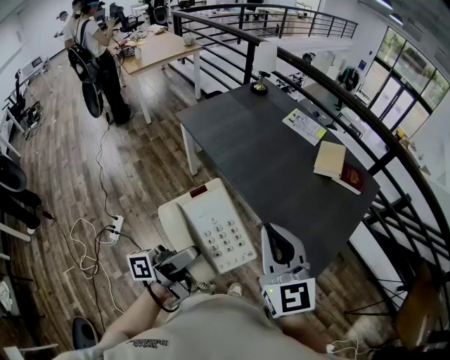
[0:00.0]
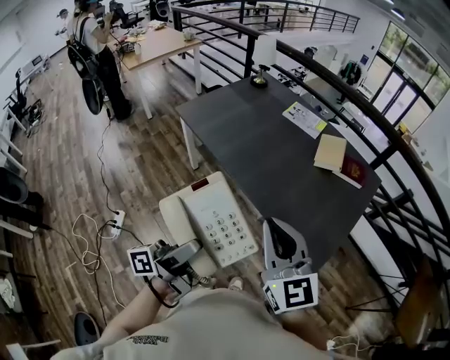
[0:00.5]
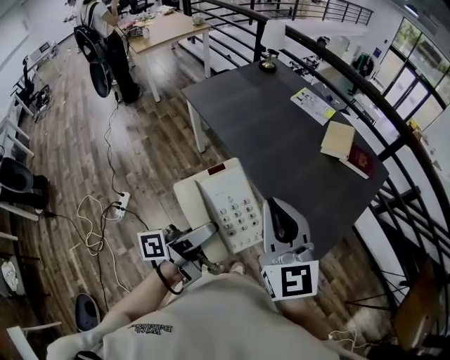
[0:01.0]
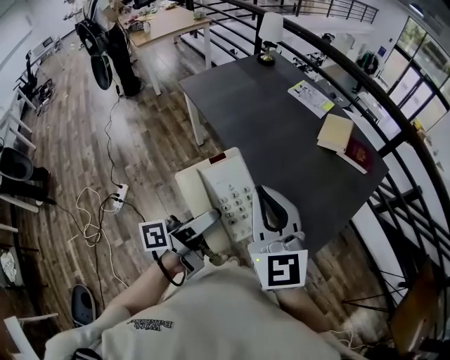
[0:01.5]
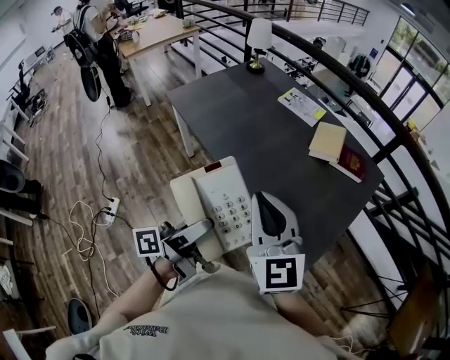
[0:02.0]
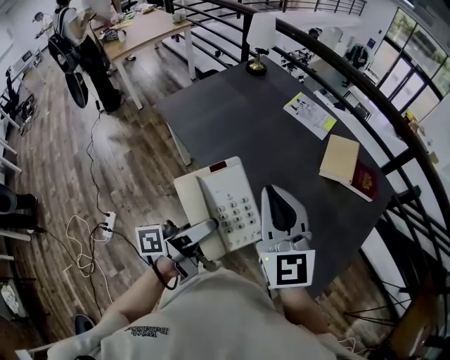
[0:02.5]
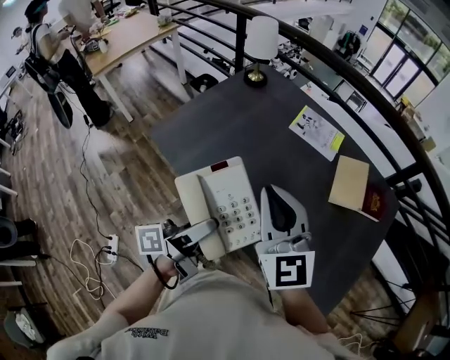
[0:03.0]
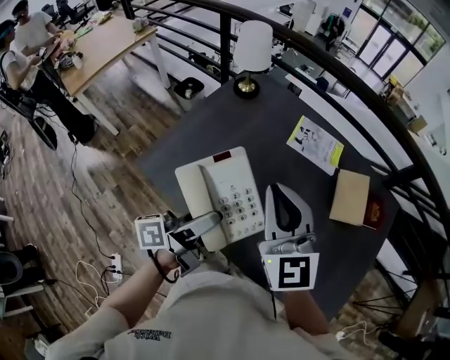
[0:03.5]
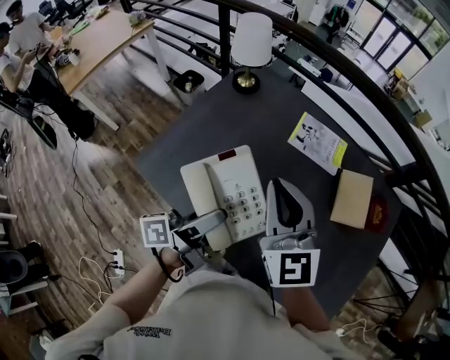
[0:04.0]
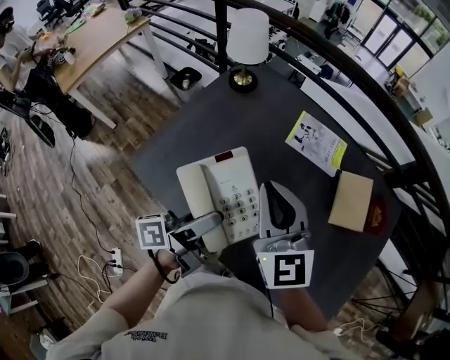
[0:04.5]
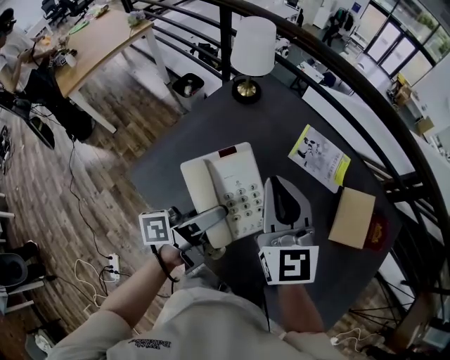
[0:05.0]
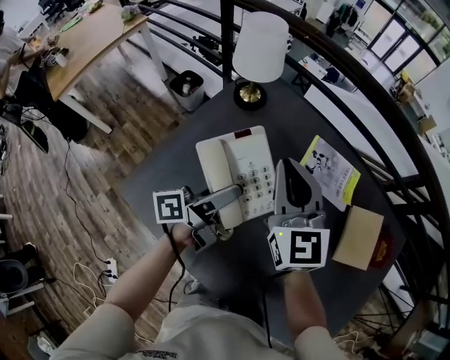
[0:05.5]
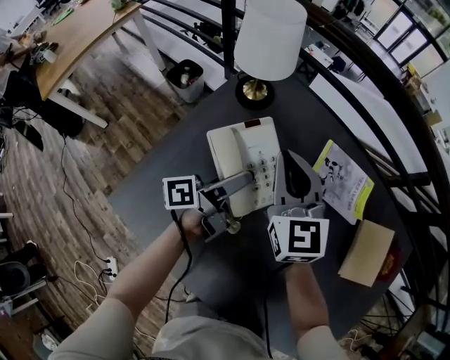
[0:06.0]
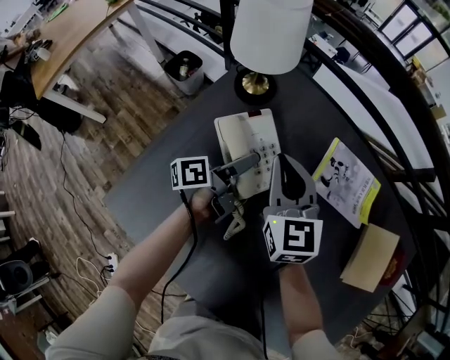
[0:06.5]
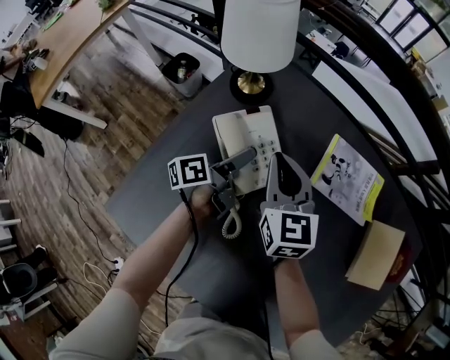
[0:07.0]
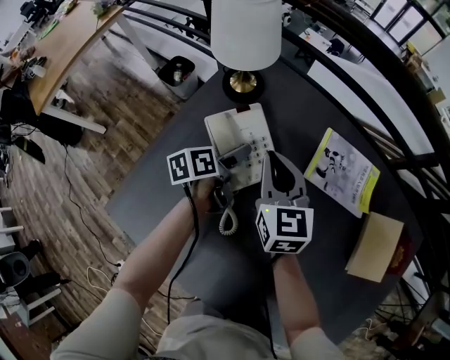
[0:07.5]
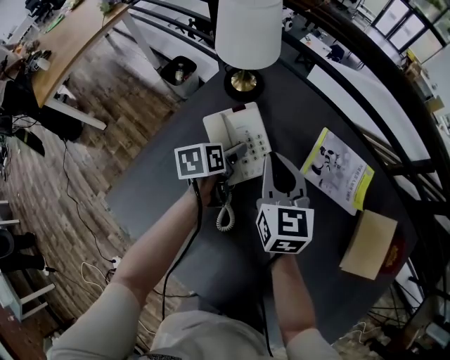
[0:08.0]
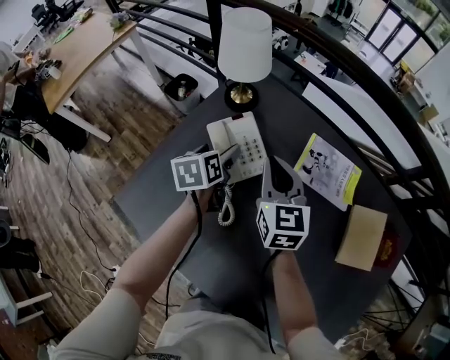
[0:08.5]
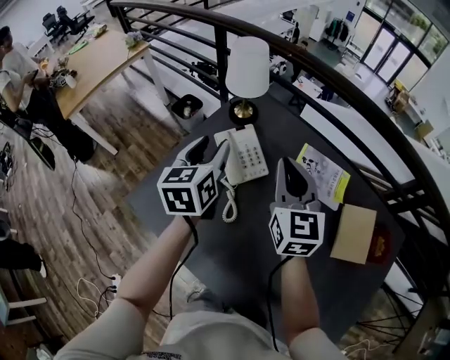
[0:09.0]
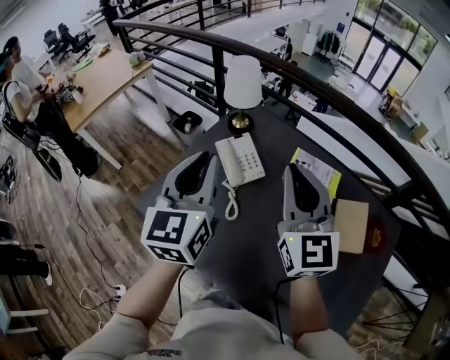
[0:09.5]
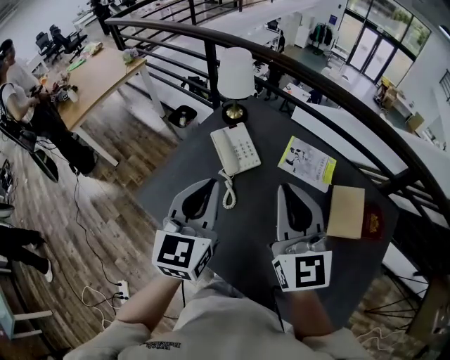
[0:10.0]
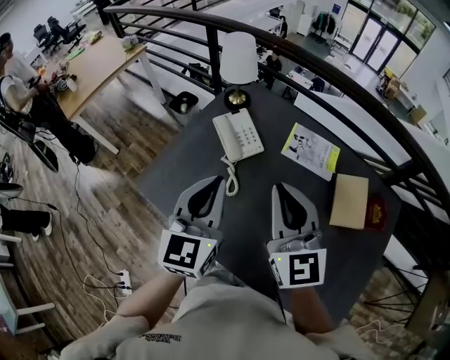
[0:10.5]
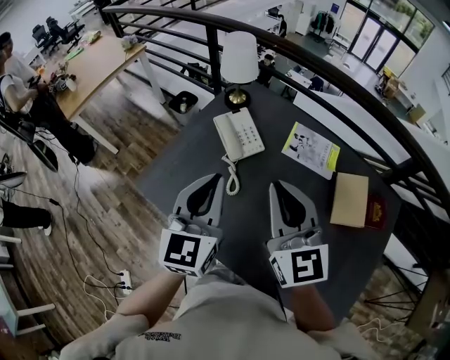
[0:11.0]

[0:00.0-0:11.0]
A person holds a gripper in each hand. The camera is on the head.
0:00.0 to 0:02.0: Both grippers travel together to the right and forward, approximately 10 cm.
0:02.0 to 0:03.5: Both grippers are carried forward and to the left, approximately 50 cm.
0:03.5 to 0:05.5: The grippers both shift forward by approximately 25 cm.
0:05.5 to 0:07.5: The grippers both shift downward and forward by about 20 cm. The left gripper angles its fingers downward, by roughly 40 degrees.
0:07.5 to 0:09.0: The right gripper shifts about 20 cm upward and backward. The left gripper moves upward, about 30 cm, swivels roughly 50 degrees, and closes its fingers.
0:09.0 to 0:11.0: The right gripper shifts roughly 20 cm backward and upward. Meanwhile the left gripper is displaced backward by roughly 20 cm, changes its angle by some 20 degrees, and closes.

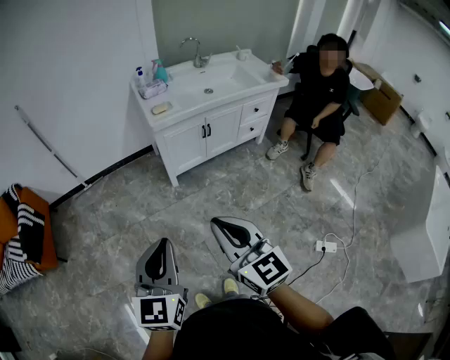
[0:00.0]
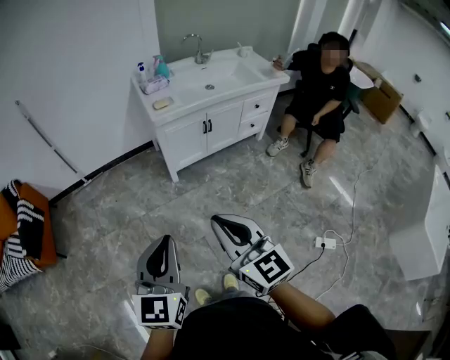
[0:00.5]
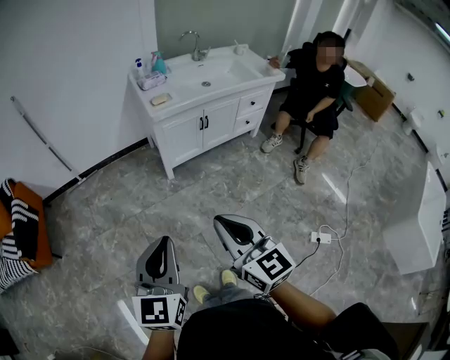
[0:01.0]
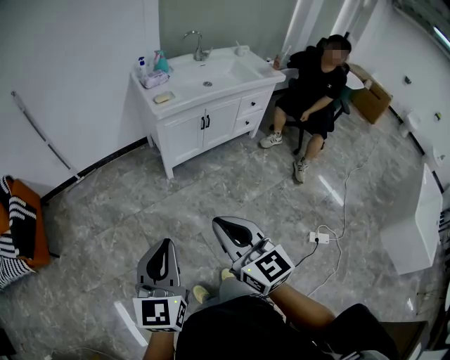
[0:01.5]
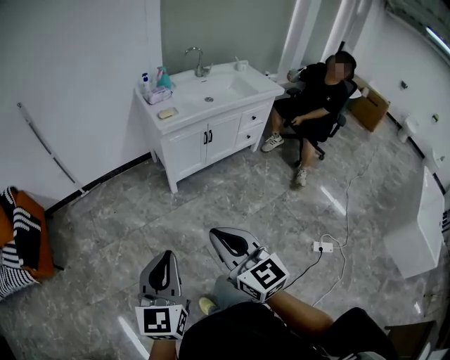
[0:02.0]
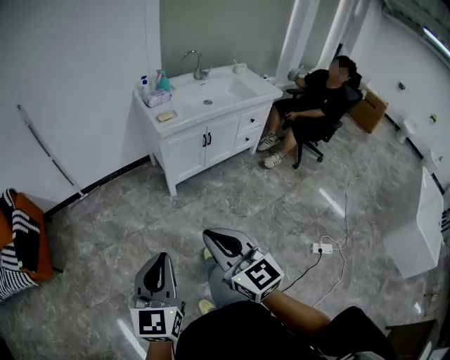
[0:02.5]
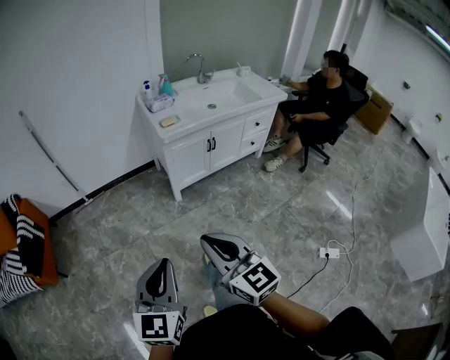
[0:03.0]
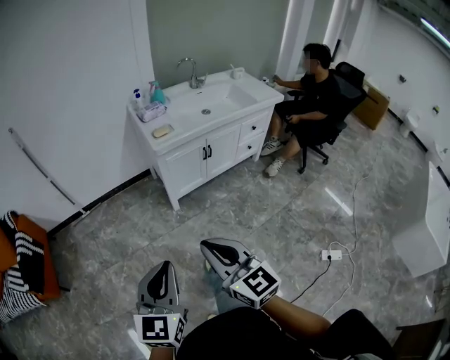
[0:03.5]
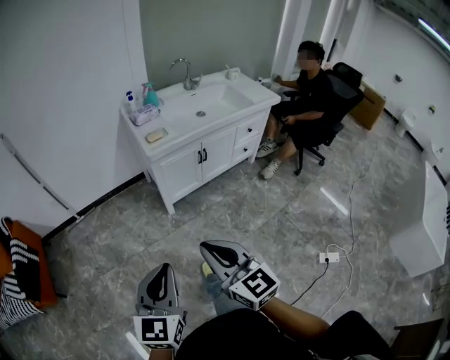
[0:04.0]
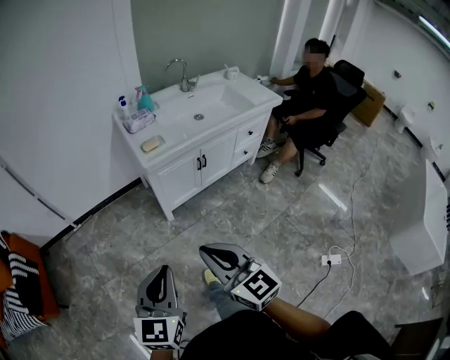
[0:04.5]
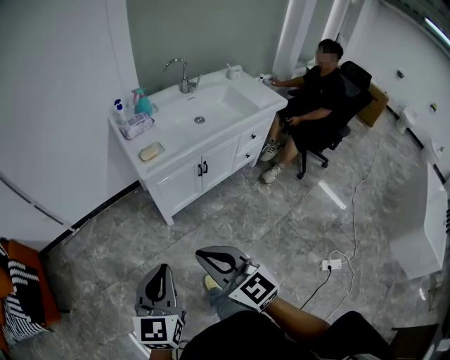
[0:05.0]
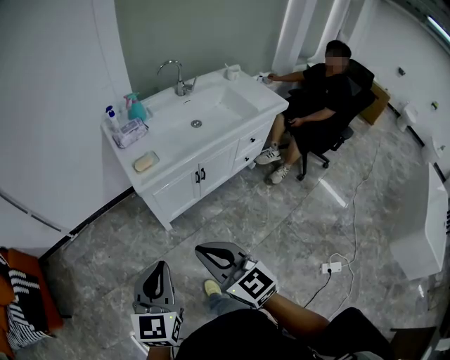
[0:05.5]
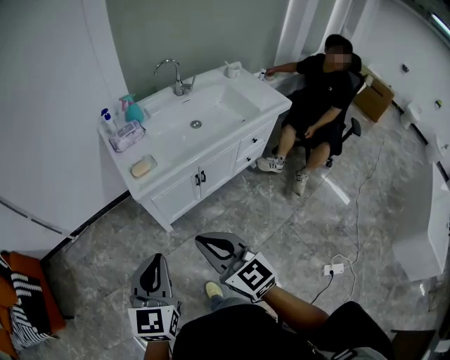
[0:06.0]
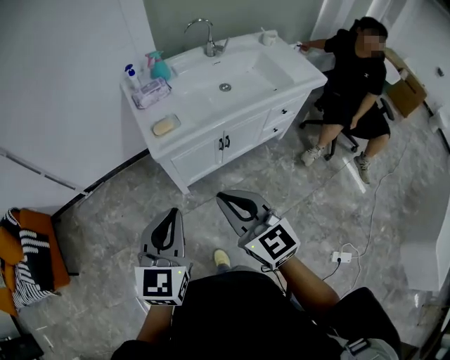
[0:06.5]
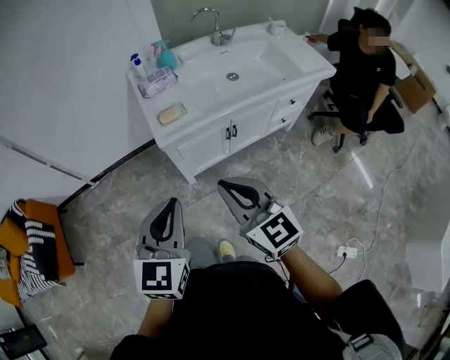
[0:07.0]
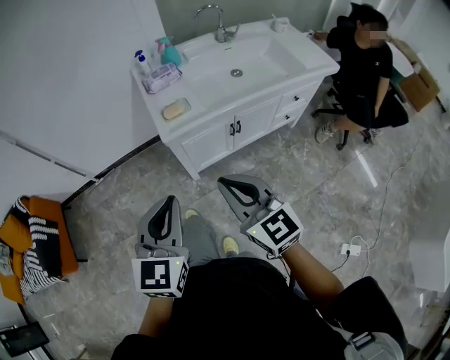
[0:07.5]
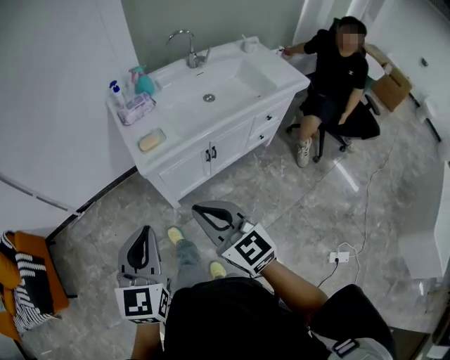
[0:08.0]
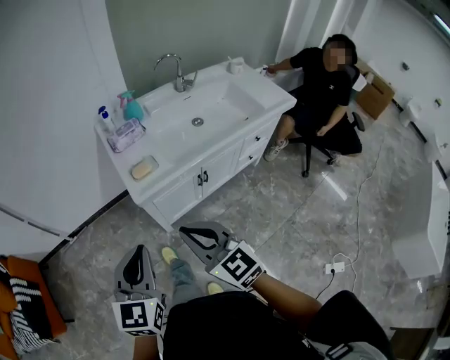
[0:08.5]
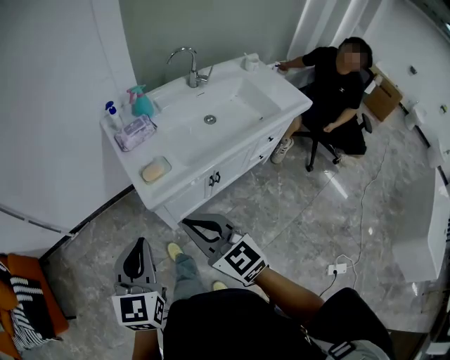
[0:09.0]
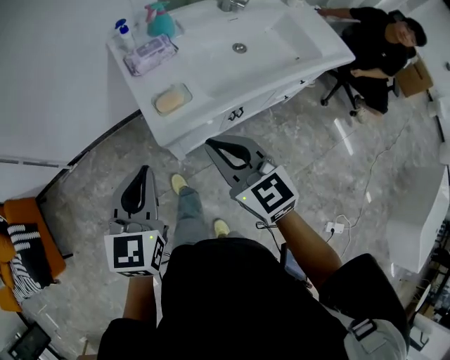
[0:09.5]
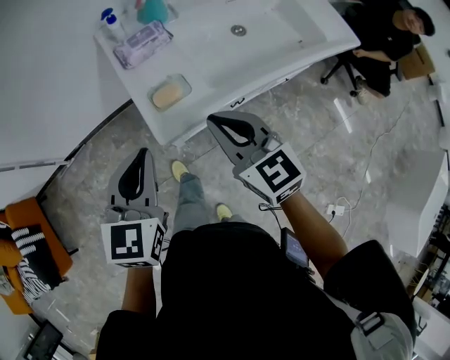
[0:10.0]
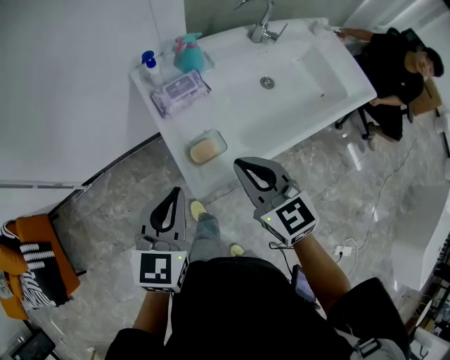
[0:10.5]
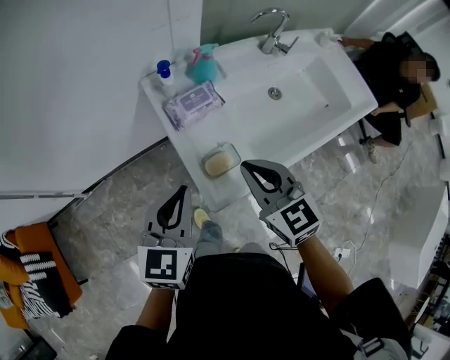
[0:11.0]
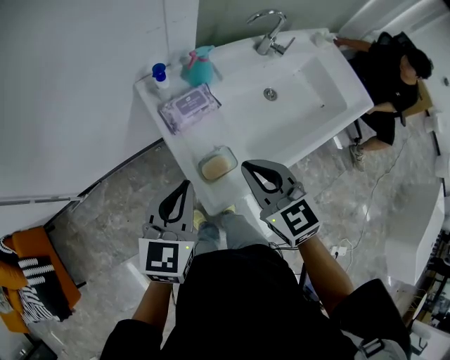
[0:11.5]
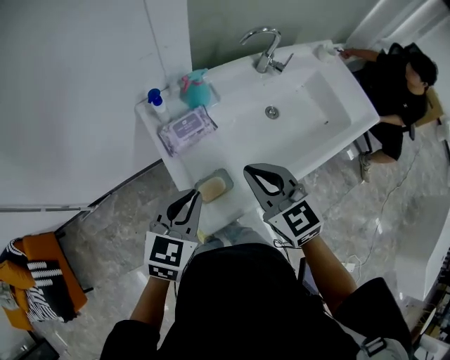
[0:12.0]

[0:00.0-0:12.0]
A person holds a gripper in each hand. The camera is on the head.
0:00.0 to 0:02.0: The grippers both shift to the left by approximately 10 cm.
0:02.0 to 0:04.0: The two grippers go approximately 10 cm forward.
0:04.0 to 0:06.0: The grippers both shift forward by some 25 cm.
0:06.0 to 0:08.0: There are only small adjustments of the grippers.
0:08.0 to 0:10.0: Both grippers move forward, roughly 25 cm.
0:10.0 to 0:12.0: Both grippers travel together forward, about 15 cm.

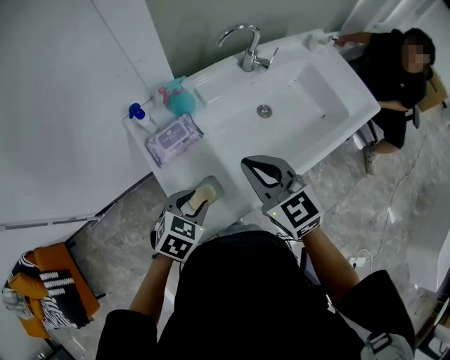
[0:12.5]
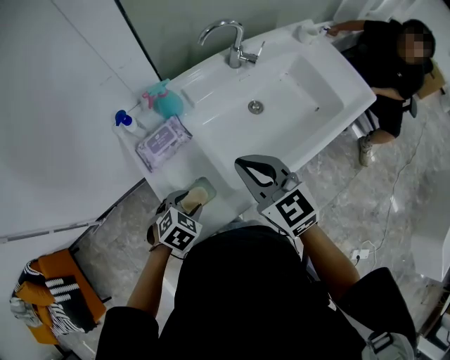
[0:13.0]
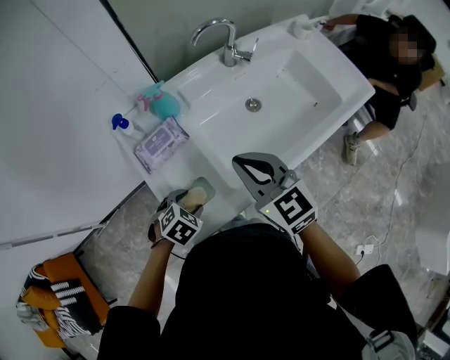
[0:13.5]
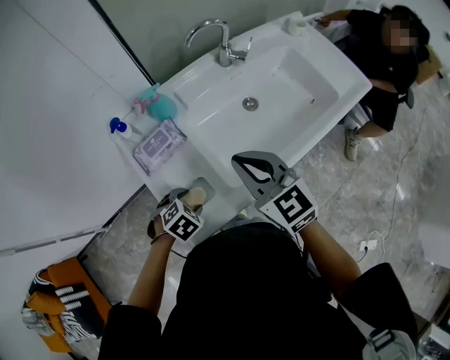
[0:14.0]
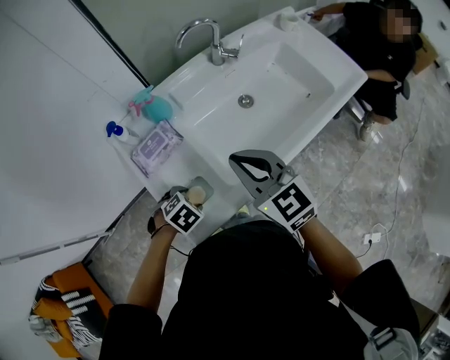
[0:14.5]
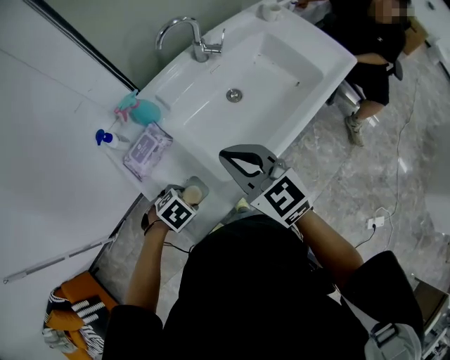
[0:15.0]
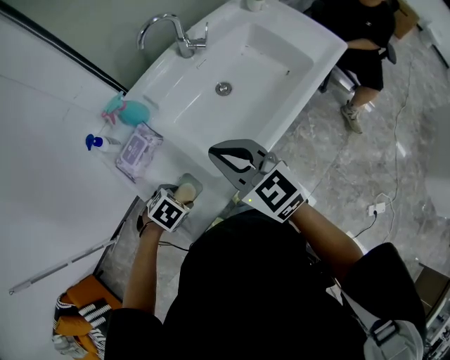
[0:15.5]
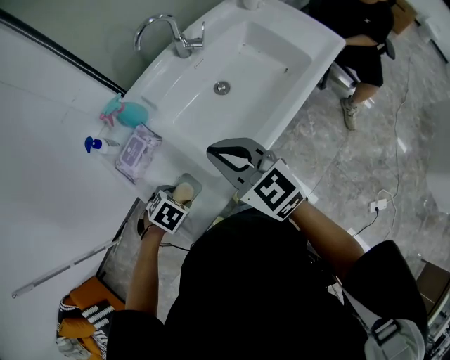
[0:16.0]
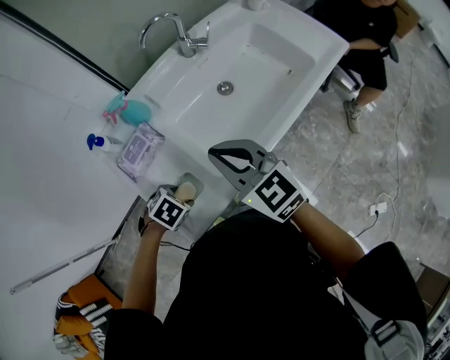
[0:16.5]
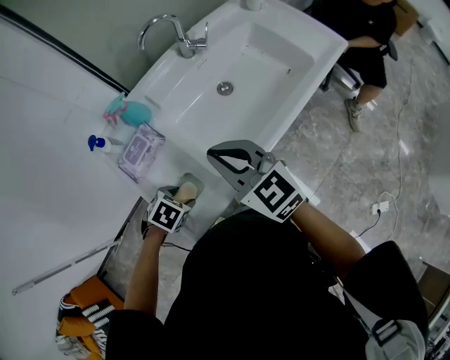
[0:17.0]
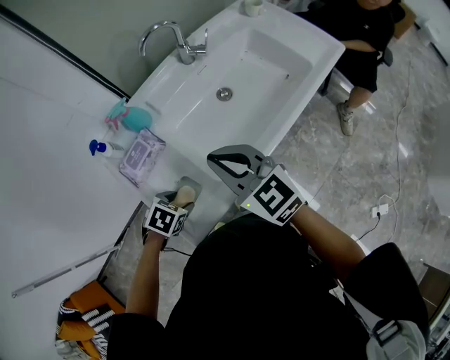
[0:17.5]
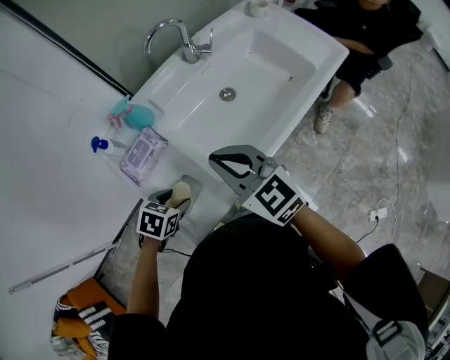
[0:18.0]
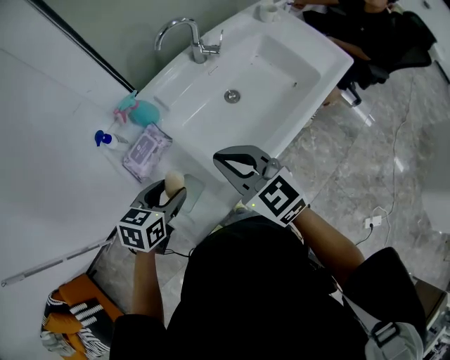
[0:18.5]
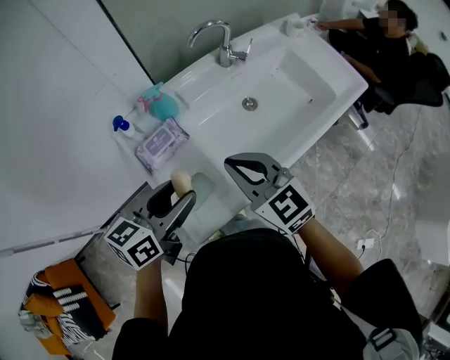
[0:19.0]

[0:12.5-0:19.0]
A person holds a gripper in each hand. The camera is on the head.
0:12.5 to 0:14.5: The left gripper is displaced downward by roughly 10 cm, changes its angle by roughly 30 degrees, and opens.
0:14.5 to 0:17.0: The grippers move only a little.
0:17.0 to 0:19.0: The left gripper moves upward, roughly 25 cm, and tips its fingers upward by some 60 degrees.
